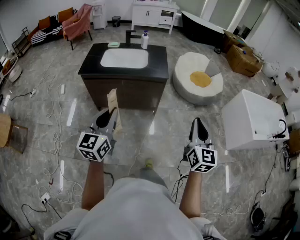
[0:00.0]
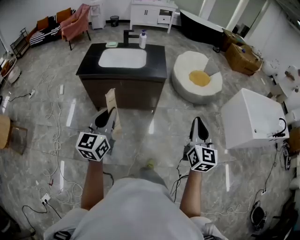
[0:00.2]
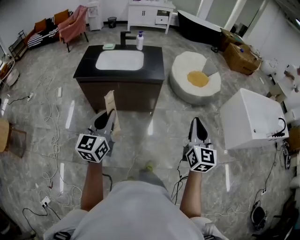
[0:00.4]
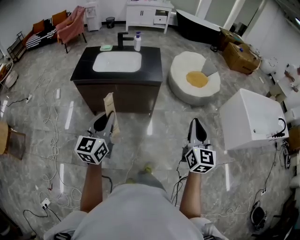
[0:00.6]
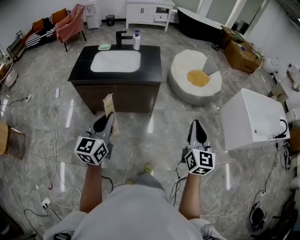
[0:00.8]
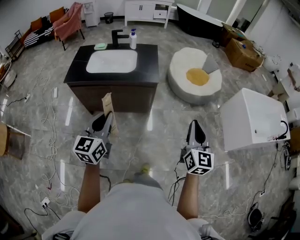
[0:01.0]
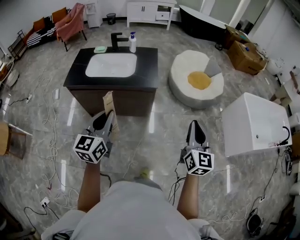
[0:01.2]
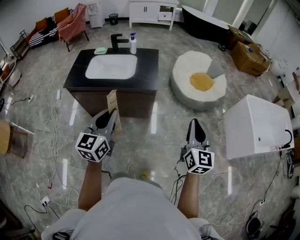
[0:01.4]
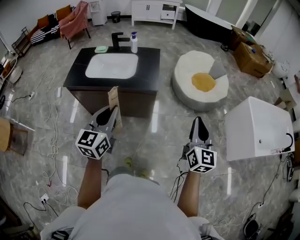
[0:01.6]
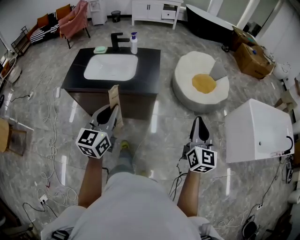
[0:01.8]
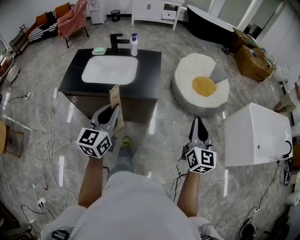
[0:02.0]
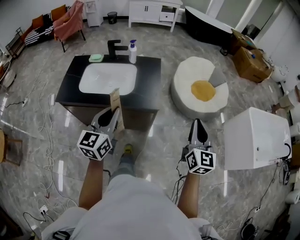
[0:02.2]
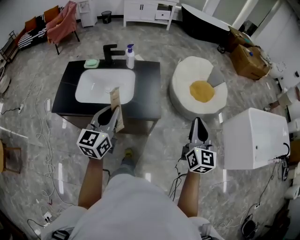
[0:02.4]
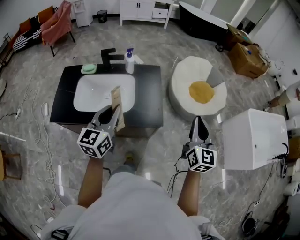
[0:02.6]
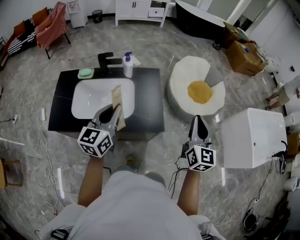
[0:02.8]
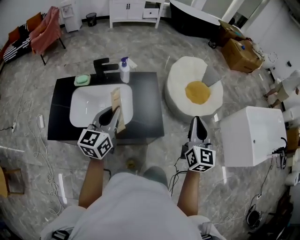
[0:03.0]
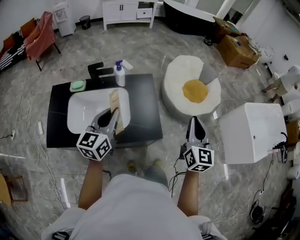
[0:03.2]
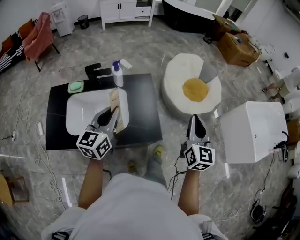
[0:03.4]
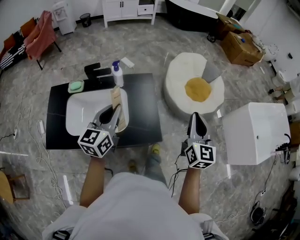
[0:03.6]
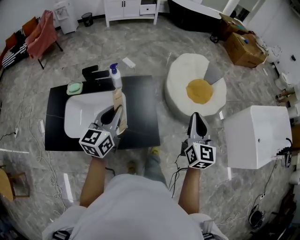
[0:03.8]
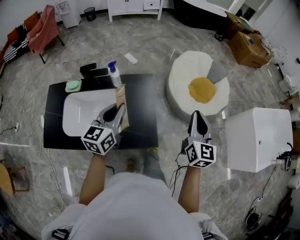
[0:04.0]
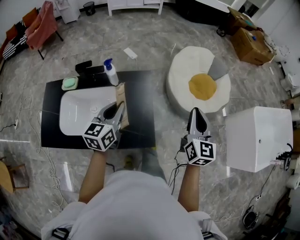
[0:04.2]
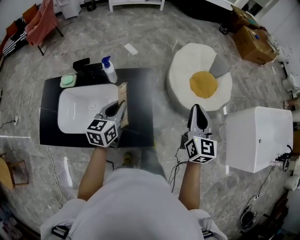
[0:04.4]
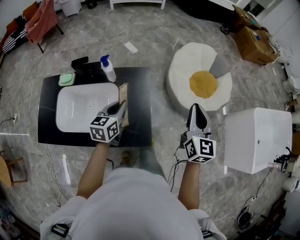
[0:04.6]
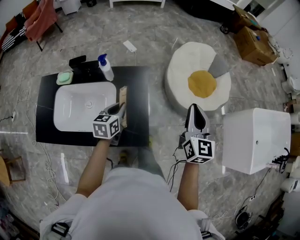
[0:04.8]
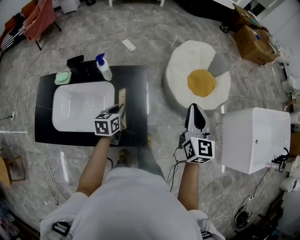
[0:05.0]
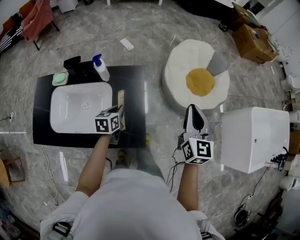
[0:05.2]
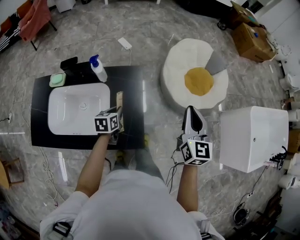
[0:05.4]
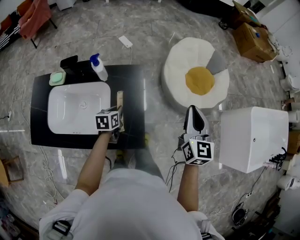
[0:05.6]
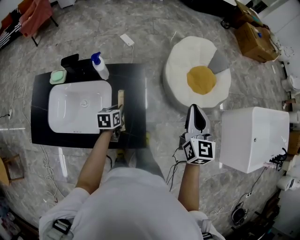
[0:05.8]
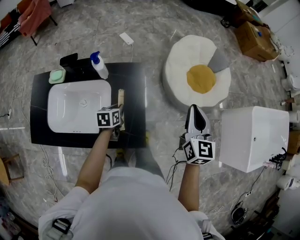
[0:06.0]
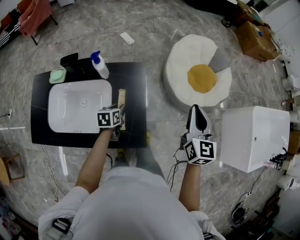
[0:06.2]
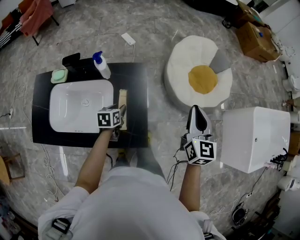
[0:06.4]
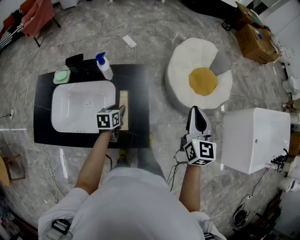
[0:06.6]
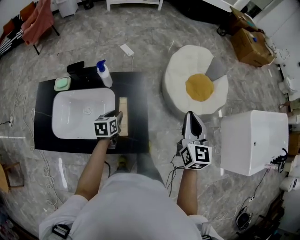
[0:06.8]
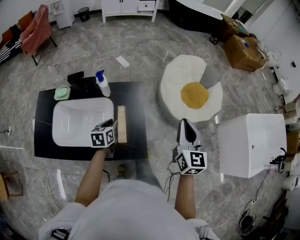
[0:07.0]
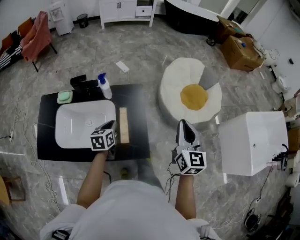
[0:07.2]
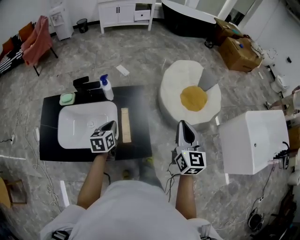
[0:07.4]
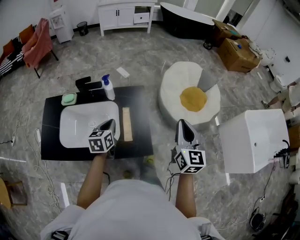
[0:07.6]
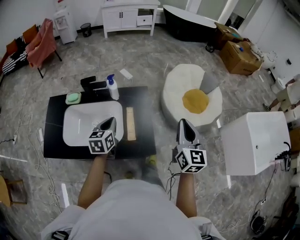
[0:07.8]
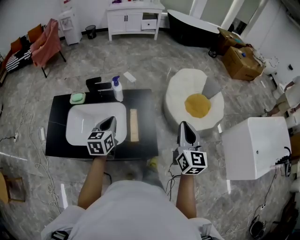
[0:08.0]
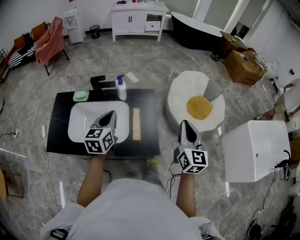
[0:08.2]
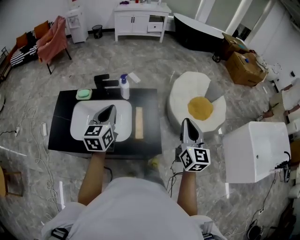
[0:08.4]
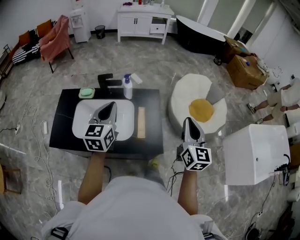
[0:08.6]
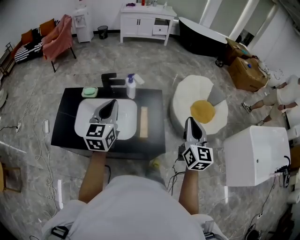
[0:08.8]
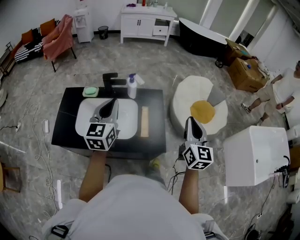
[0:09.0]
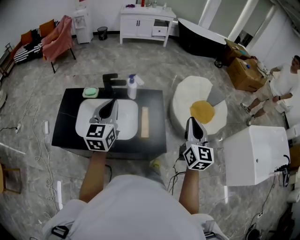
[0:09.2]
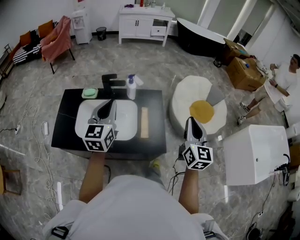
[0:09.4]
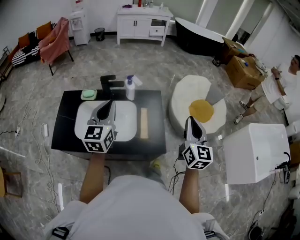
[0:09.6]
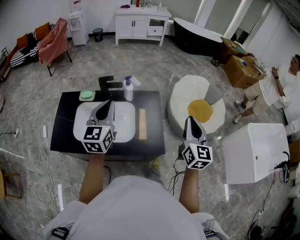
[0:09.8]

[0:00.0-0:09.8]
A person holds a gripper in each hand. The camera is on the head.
0:00.0 to 0:01.4: The grippers both shift forward and to the right by approximately 25 cm.
0:01.4 to 0:02.8: The pair of grippers is taken forward and to the left, approximately 50 cm.
0:02.8 to 0:04.2: Both grippers move forward, about 20 cm.
0:04.2 to 0:05.6: The right gripper shifts roughly 5 cm forward; the left gripper goes some 25 cm downward, and tips its fingers downward by about 30 degrees.
0:05.6 to 0:07.0: The left gripper moves upward, some 5 cm. The right gripper shifts about 5 cm backward.
0:07.0 to 0:08.4: The right gripper is displaced backward, upward and to the left by some 15 cm. The left gripper heads upward and backward, covering roughly 25 cm, and swivels roughly 30 degrees.
0:08.4 to 0:09.8: The left gripper heads upward, covering roughly 5 cm.

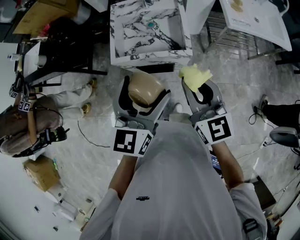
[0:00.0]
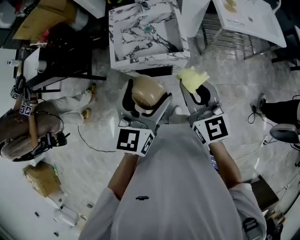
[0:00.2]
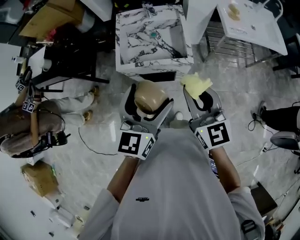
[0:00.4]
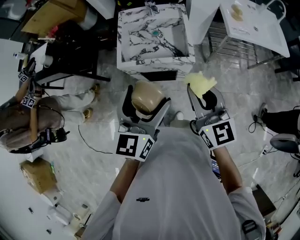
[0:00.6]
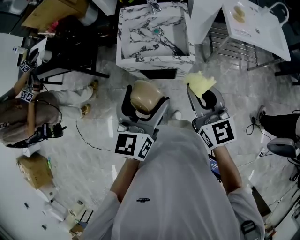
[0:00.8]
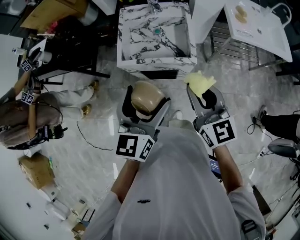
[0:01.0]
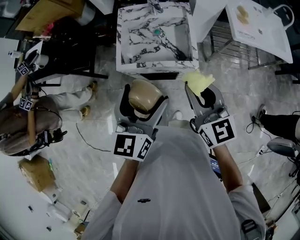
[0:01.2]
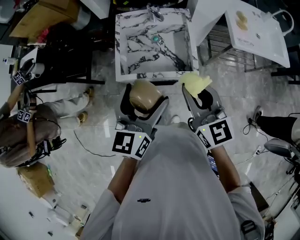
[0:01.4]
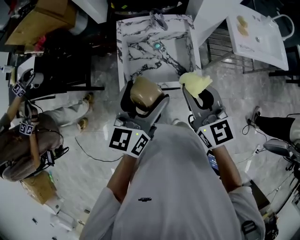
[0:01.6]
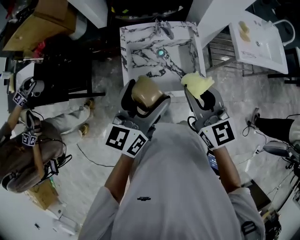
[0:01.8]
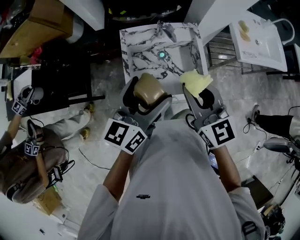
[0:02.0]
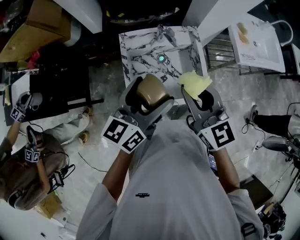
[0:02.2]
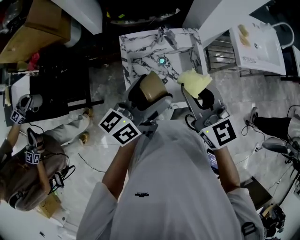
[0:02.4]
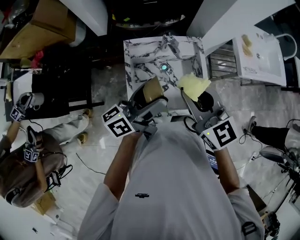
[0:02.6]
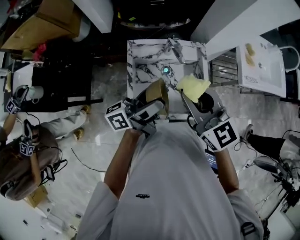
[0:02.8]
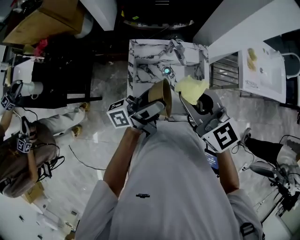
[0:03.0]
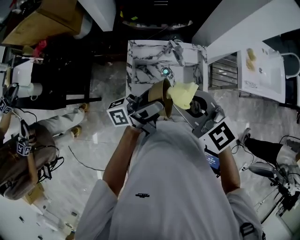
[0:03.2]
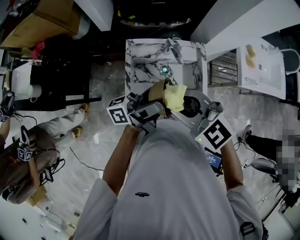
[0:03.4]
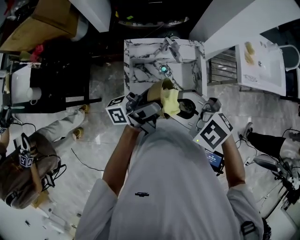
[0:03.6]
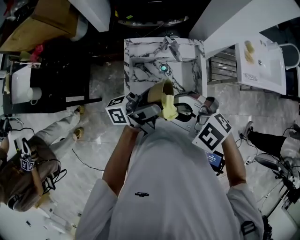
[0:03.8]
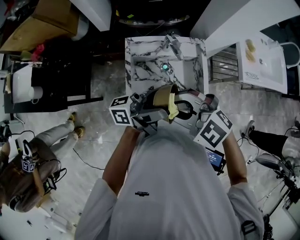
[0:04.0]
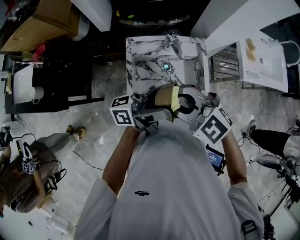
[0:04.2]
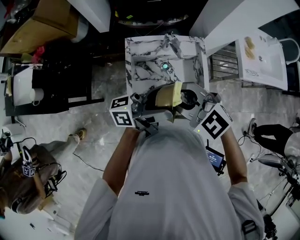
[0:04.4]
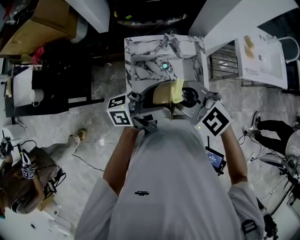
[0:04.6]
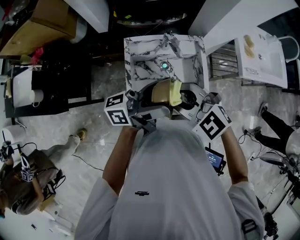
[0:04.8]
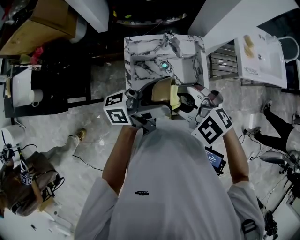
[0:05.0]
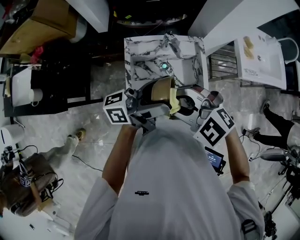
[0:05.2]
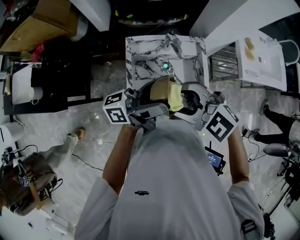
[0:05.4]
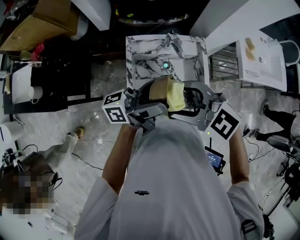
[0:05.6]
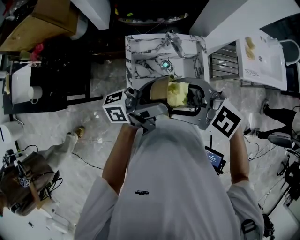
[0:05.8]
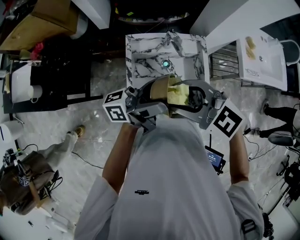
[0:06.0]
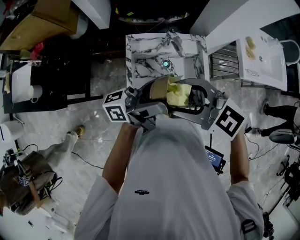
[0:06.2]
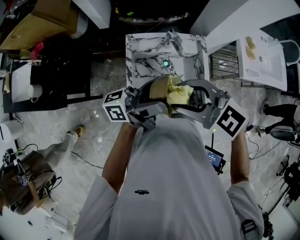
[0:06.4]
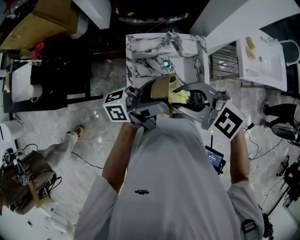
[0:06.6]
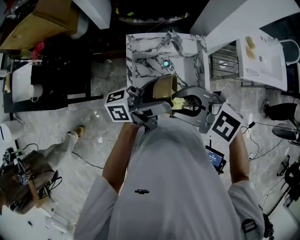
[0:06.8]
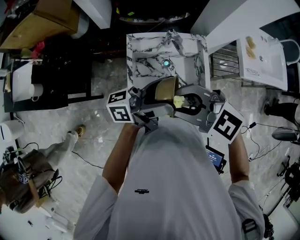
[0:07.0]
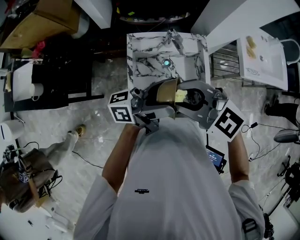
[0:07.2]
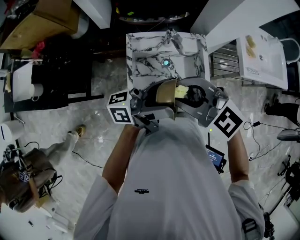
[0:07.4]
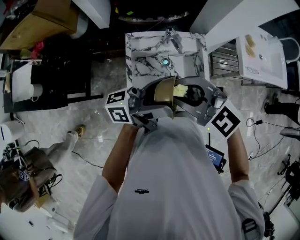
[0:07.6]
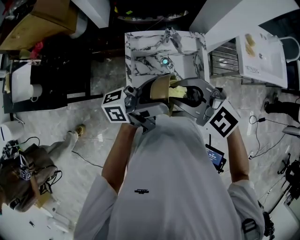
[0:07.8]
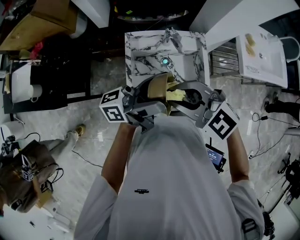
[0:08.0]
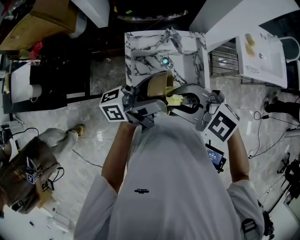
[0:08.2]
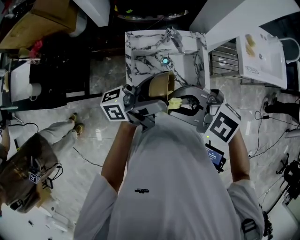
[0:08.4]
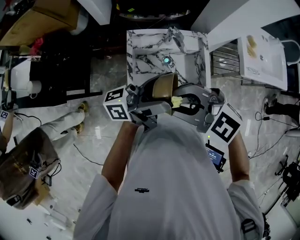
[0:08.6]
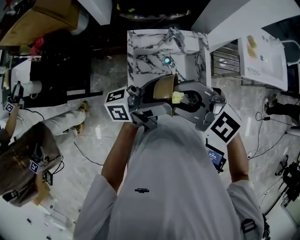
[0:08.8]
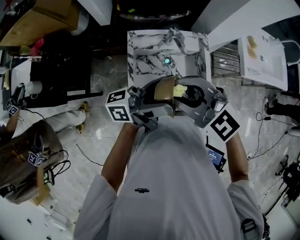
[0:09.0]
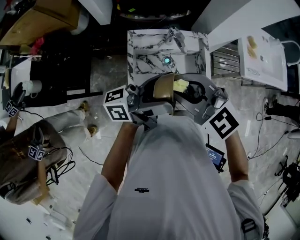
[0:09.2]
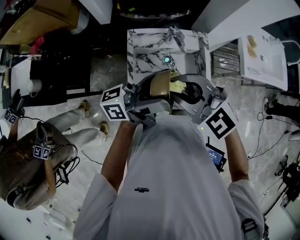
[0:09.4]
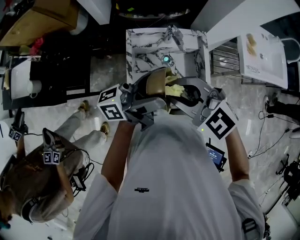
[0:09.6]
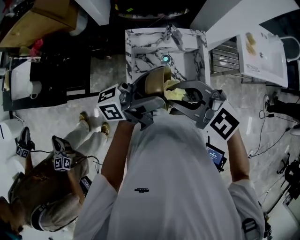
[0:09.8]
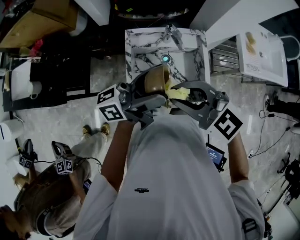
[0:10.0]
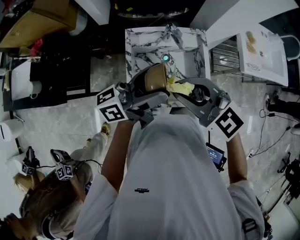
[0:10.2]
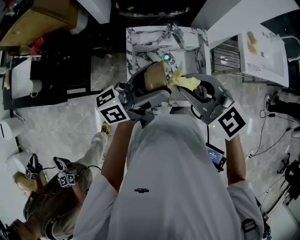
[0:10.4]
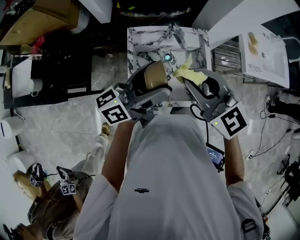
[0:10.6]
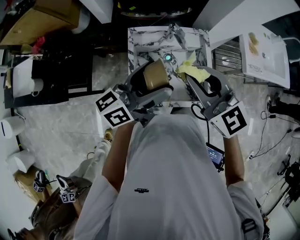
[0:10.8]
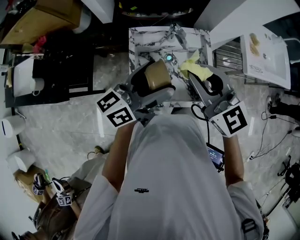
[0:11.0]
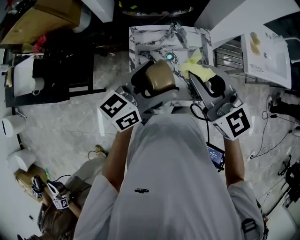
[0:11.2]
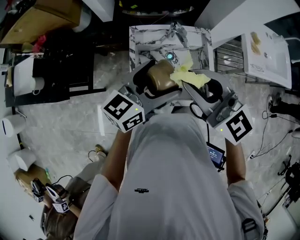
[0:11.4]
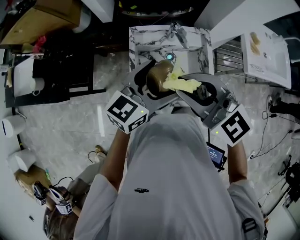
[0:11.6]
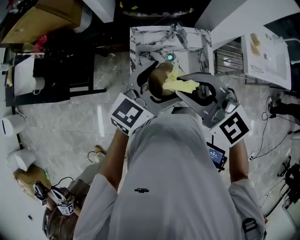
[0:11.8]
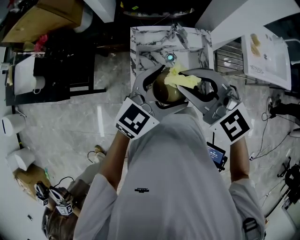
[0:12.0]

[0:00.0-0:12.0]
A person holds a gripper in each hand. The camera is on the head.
0:00.0 to 0:01.6: The two grippers go about 15 cm forward and to the left.
0:01.6 to 0:03.0: The left gripper shifts approximately 15 cm forward, and tilts its fingers approximately 40 degrees upward; the right gripper goes approximately 15 cm forward and to the left.
0:03.0 to 0:04.4: The left gripper shifts by about 5 cm, while the right gripper ends up about 5 cm from where it was, and rotates roughly 30 degrees.
0:04.4 to 0:06.0: The right gripper opens its fingers.
0:06.0 to 0:07.6: The right gripper closes.
0:07.6 to 0:10.4: The grippers make only small movements.
0:10.4 to 0:12.0: The left gripper changes place by about 5 cm, and tips its fingers downward by some 30 degrees.

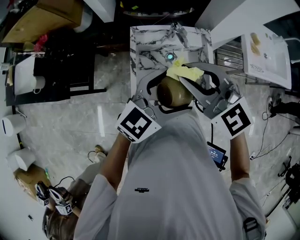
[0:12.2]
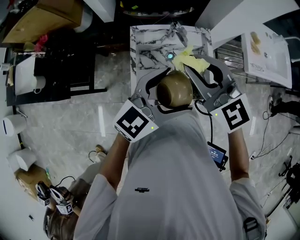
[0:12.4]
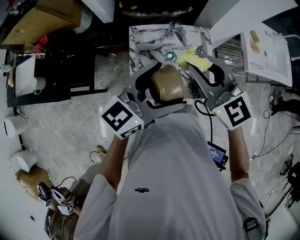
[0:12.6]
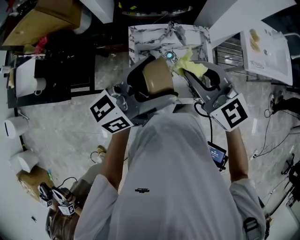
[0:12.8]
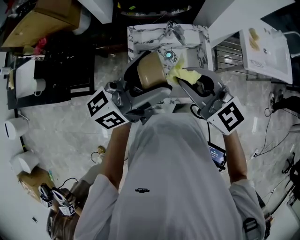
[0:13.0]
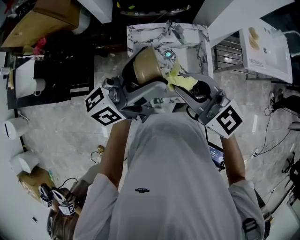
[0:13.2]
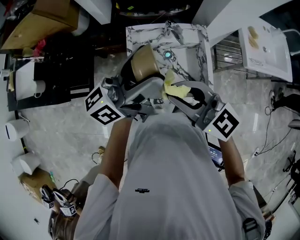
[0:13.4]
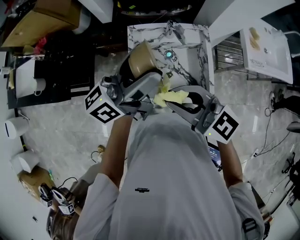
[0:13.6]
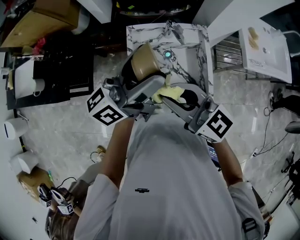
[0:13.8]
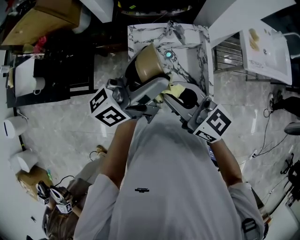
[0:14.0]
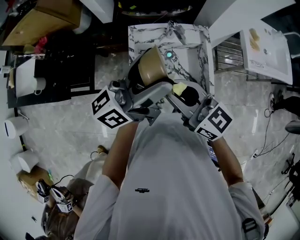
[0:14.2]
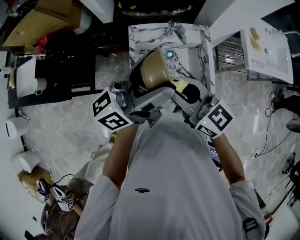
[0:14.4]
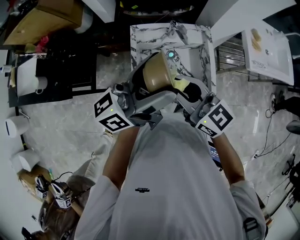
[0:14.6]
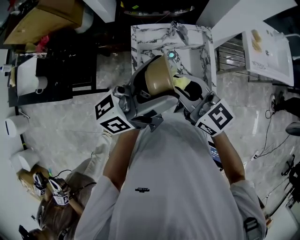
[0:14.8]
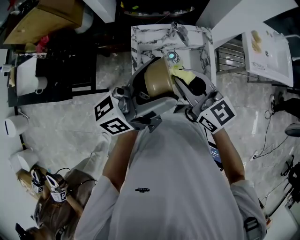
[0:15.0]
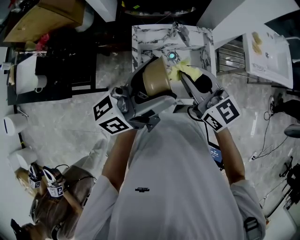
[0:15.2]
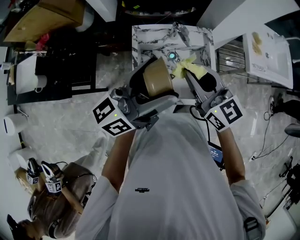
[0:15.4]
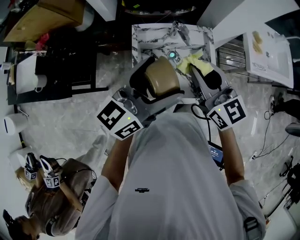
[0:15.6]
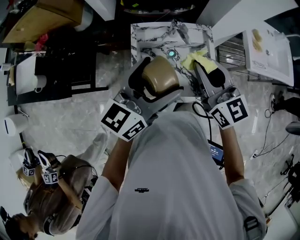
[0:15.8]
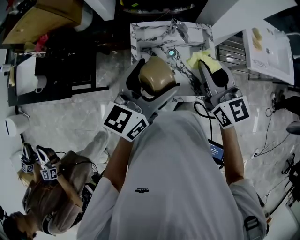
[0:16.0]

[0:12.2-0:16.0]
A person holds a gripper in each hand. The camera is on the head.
0:12.2 to 0:13.4: The right gripper goes some 5 cm backward, and rotates approximately 20 degrees, while the left gripper heads upward, to the left and forward, covering approximately 10 cm, and tips its fingers upward by approximately 30 degrees.
0:13.4 to 0:14.8: The grippers make only small movements.
0:14.8 to 0:16.0: The right gripper travels to the right and forward by approximately 10 cm, and turns by approximately 20 degrees; the left gripper travels downward by about 10 cm, and swivels about 40 degrees.